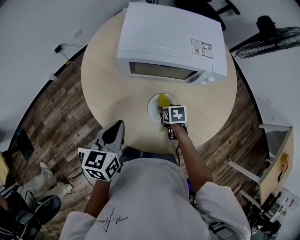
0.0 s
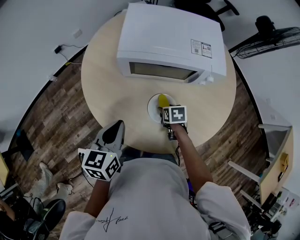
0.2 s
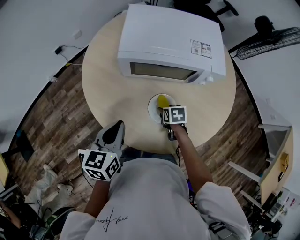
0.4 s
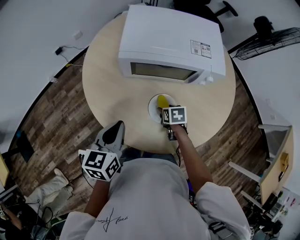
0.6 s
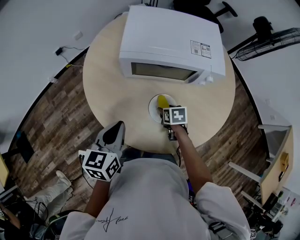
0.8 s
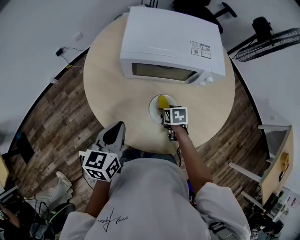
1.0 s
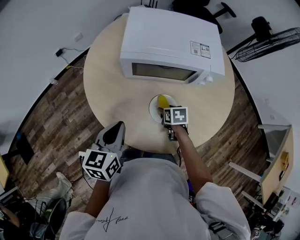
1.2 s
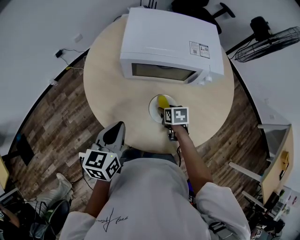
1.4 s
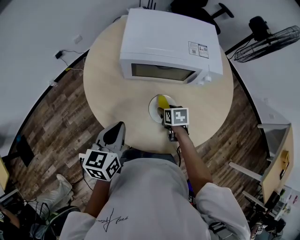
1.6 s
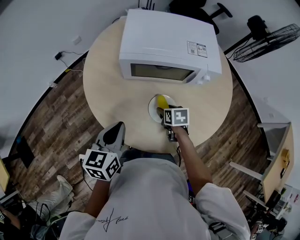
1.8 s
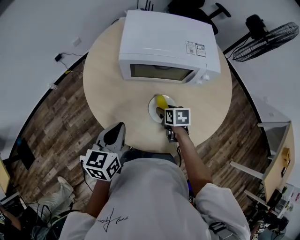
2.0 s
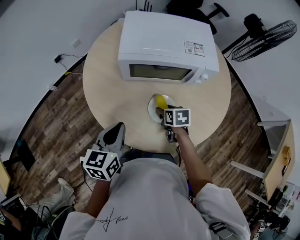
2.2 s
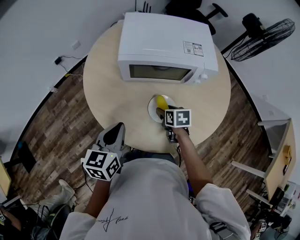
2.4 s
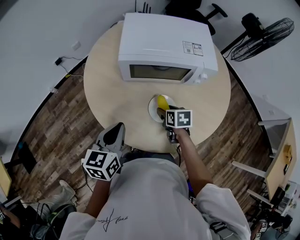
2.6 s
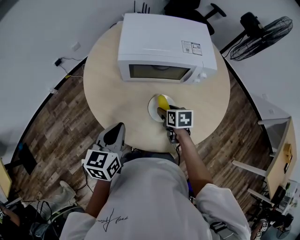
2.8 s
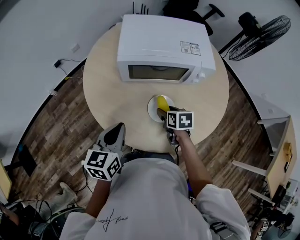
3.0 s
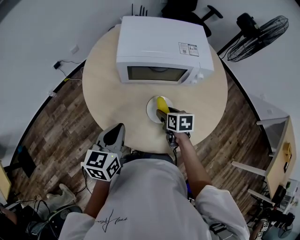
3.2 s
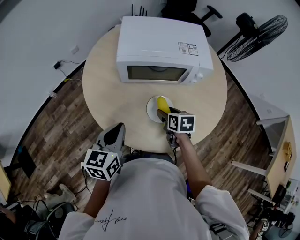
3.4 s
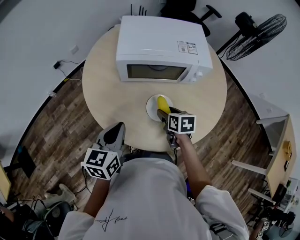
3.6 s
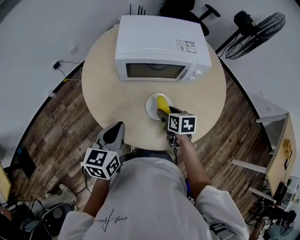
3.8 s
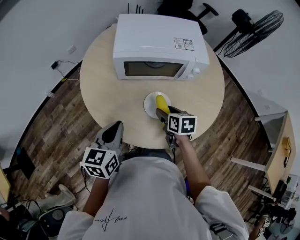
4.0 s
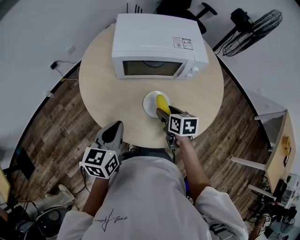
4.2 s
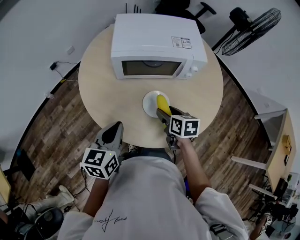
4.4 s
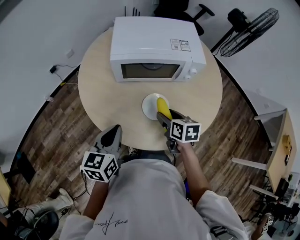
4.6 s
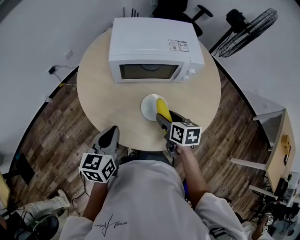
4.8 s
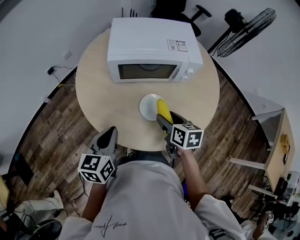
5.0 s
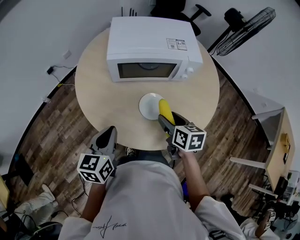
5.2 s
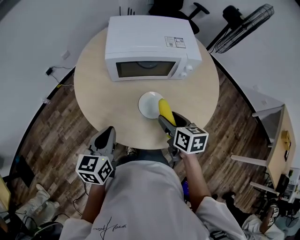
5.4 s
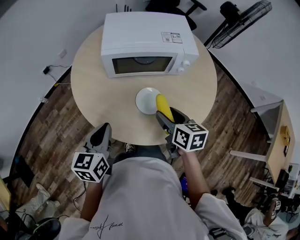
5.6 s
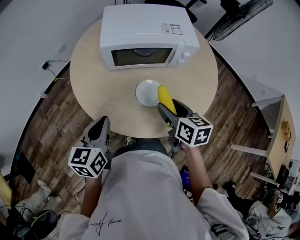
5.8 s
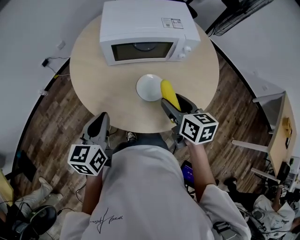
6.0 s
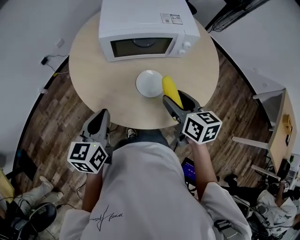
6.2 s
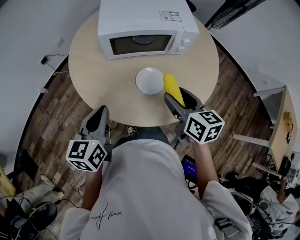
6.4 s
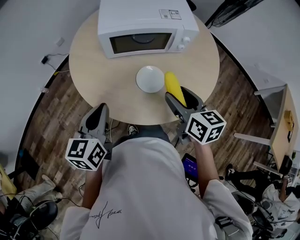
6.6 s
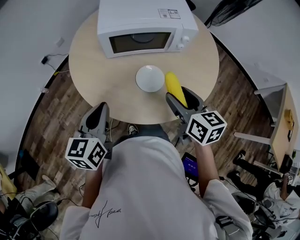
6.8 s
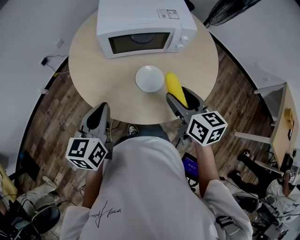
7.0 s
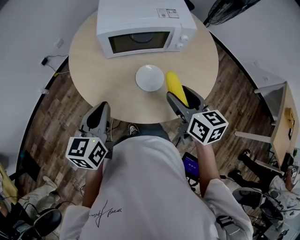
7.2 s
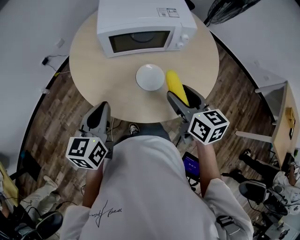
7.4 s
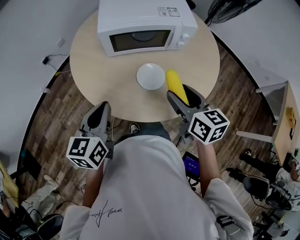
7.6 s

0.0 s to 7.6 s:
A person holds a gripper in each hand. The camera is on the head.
0.0 to 1.6 s: The grippers stay close to where they were, moving slightly.
1.6 to 3.0 s: The right gripper moves approximately 5 cm.
3.0 to 4.6 s: The right gripper travels upward by roughly 5 cm.
4.6 to 6.0 s: The right gripper moves upward, roughly 10 cm.
6.0 to 7.6 s: The right gripper changes place by some 5 cm.

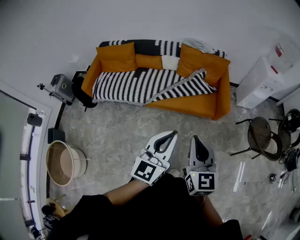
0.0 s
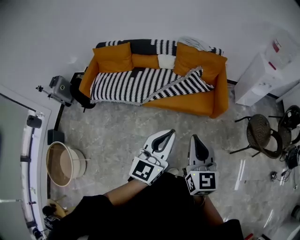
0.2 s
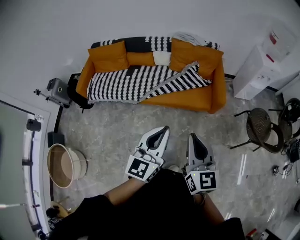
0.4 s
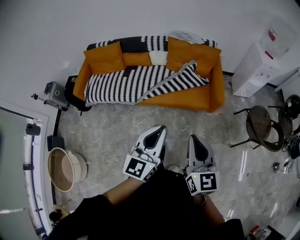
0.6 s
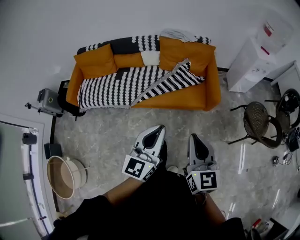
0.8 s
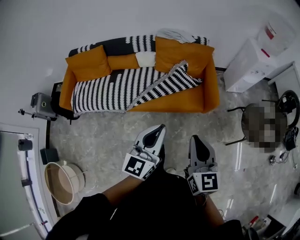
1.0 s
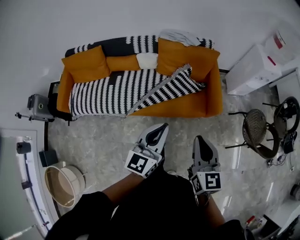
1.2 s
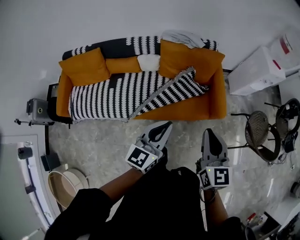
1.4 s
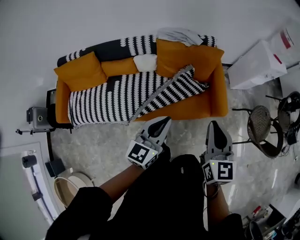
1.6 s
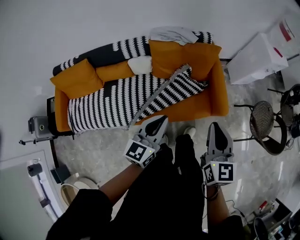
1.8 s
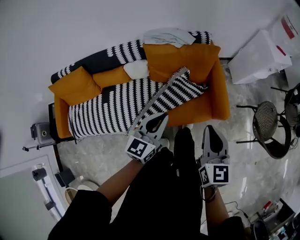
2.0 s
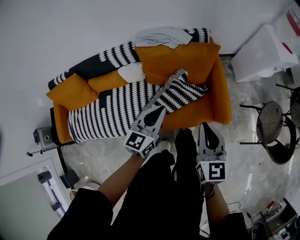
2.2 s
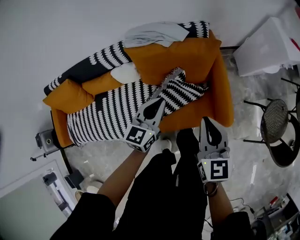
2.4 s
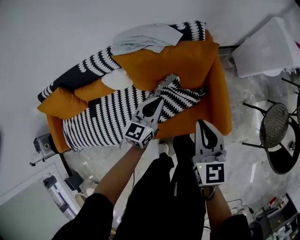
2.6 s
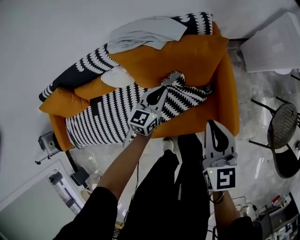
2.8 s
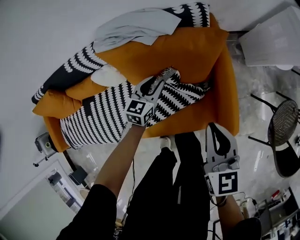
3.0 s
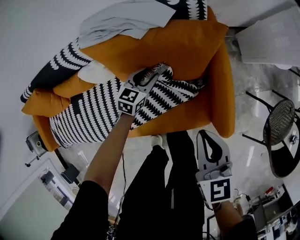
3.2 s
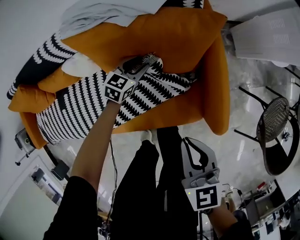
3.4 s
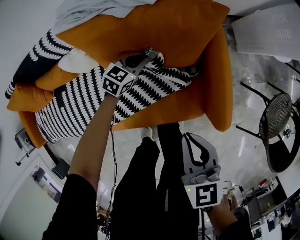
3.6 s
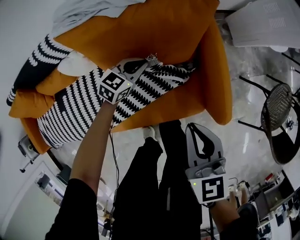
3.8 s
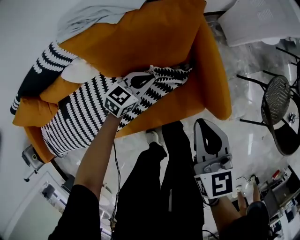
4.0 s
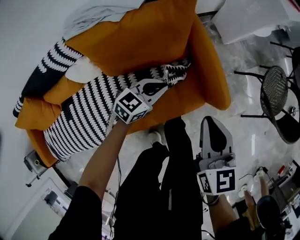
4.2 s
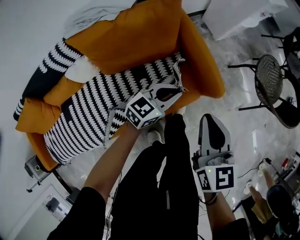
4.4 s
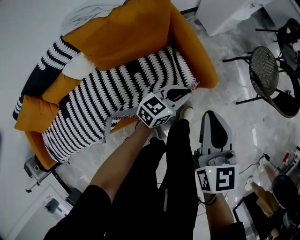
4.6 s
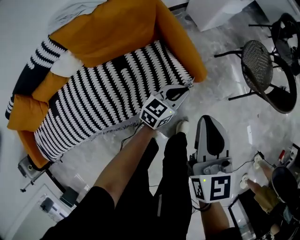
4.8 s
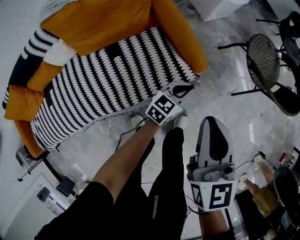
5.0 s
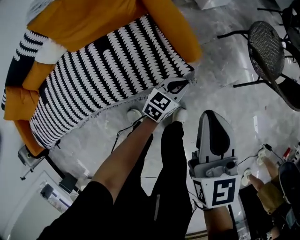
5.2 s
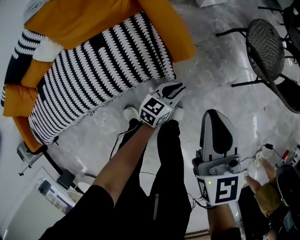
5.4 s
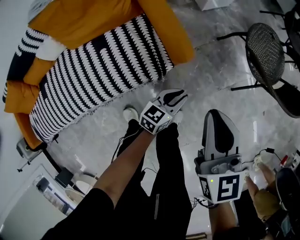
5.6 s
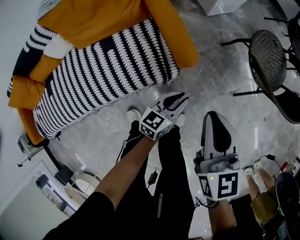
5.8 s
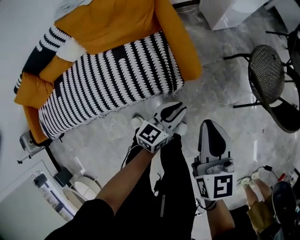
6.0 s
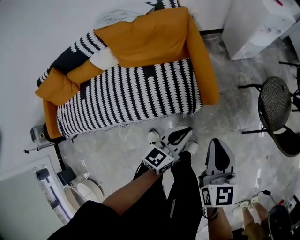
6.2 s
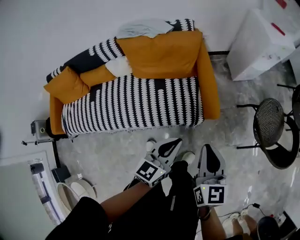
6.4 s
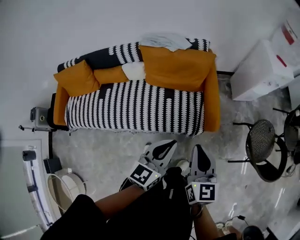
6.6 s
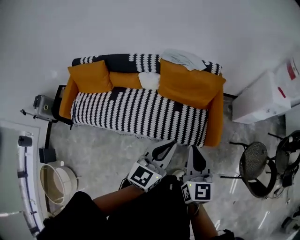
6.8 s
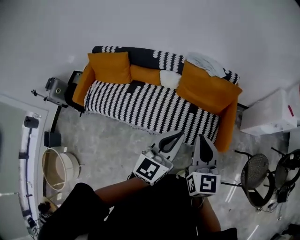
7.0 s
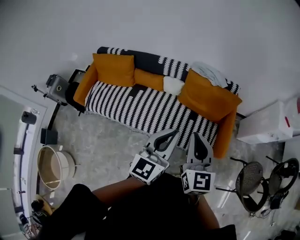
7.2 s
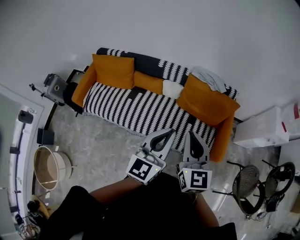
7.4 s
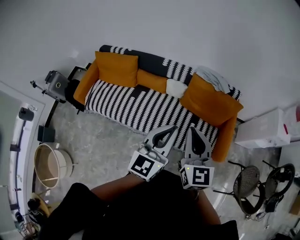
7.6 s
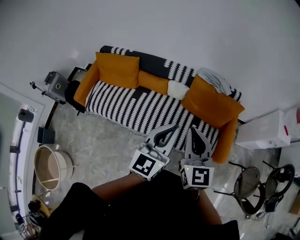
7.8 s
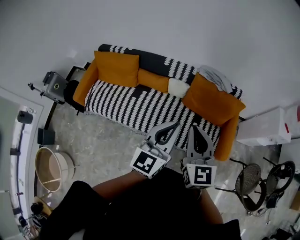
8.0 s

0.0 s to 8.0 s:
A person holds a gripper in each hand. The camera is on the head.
0.0 to 1.6 s: Both grippers move forward, approximately 40 cm.
1.6 to 3.2 s: The right gripper heads downward and forward, covering roughly 40 cm. The left gripper goes approximately 70 cm downward and forward, turns by some 30 degrees, and opens its fingers.
3.2 to 4.8 s: The left gripper moves up and down over roughly 15 cm, changing direction 2 times, rotates roughly 40 degrees, and closes, while the right gripper moves some 25 cm, and changes its angle by approximately 30 degrees.
4.8 to 6.4 s: The left gripper travels upward by some 20 cm, and turns by about 30 degrees, while the right gripper reaches about 10 cm downward, then returns.
6.4 to 8.0 s: The right gripper moves approximately 50 cm, and swivels approximately 40 degrees. Meanwhile the left gripper moves some 50 cm, and swivels roughly 40 degrees.

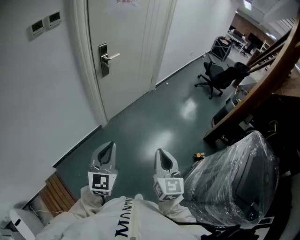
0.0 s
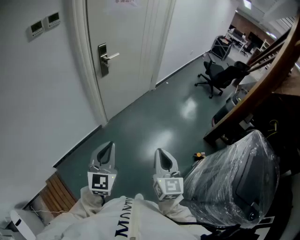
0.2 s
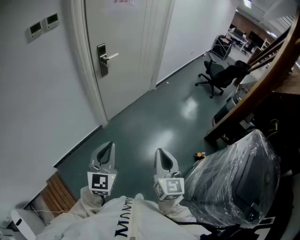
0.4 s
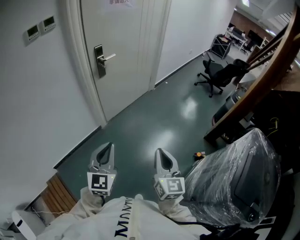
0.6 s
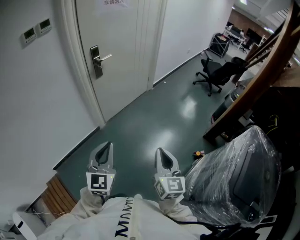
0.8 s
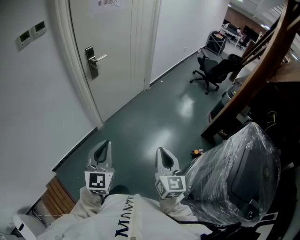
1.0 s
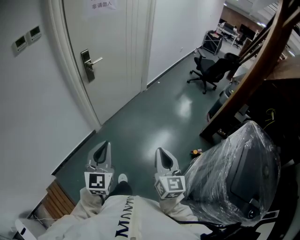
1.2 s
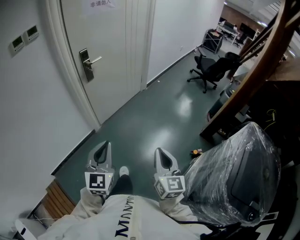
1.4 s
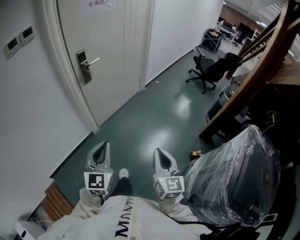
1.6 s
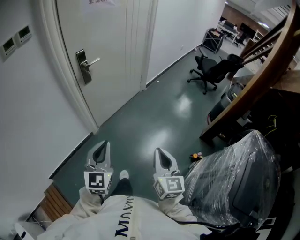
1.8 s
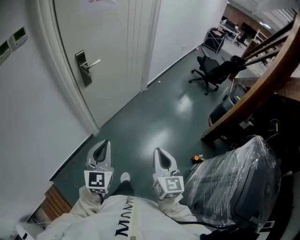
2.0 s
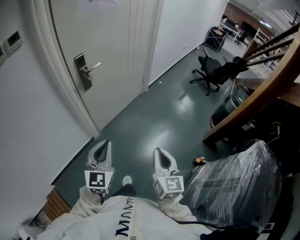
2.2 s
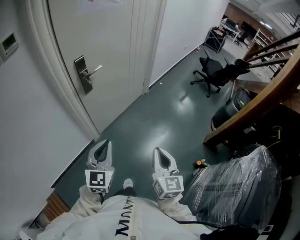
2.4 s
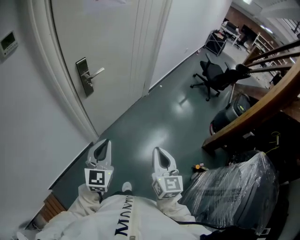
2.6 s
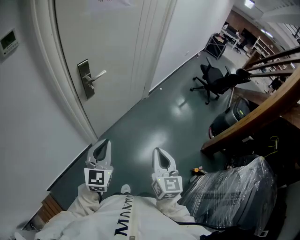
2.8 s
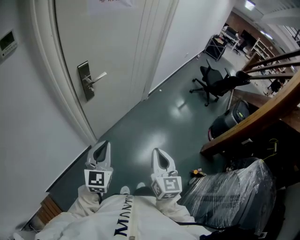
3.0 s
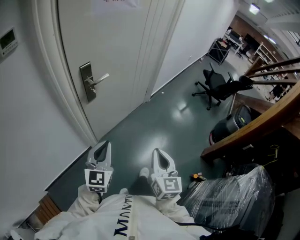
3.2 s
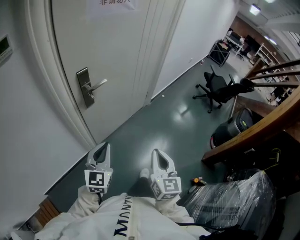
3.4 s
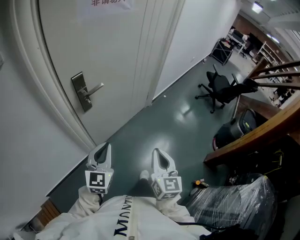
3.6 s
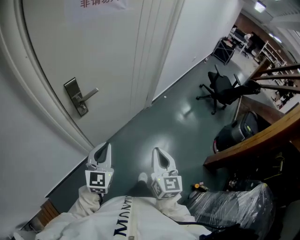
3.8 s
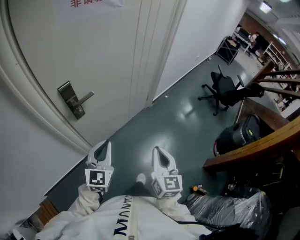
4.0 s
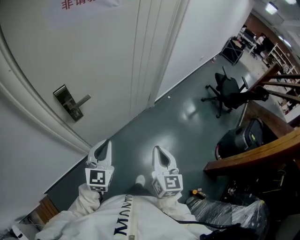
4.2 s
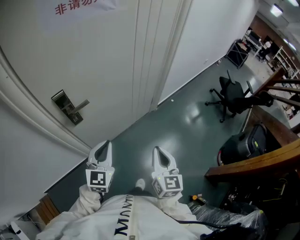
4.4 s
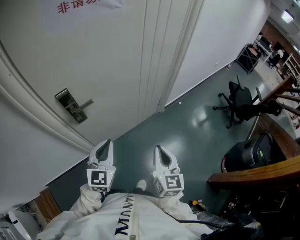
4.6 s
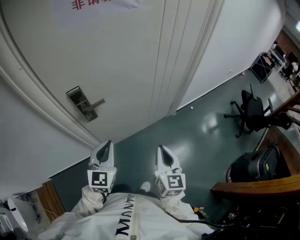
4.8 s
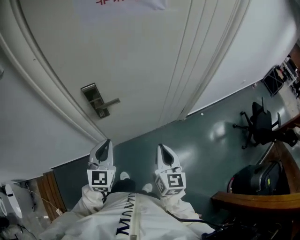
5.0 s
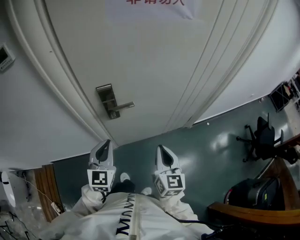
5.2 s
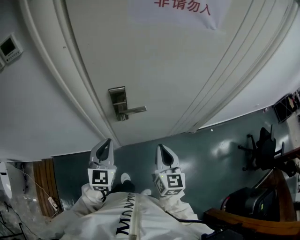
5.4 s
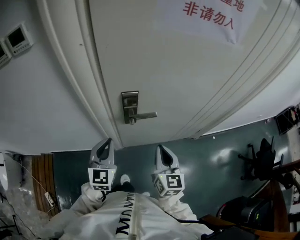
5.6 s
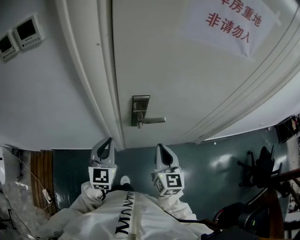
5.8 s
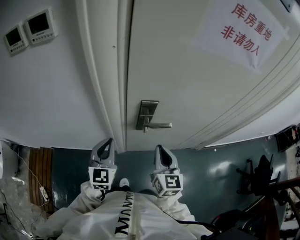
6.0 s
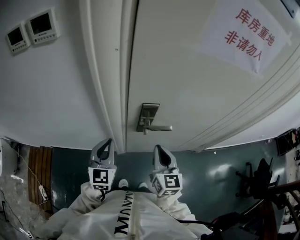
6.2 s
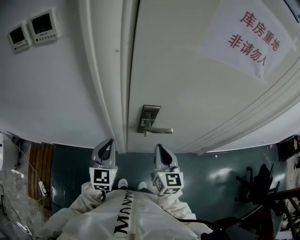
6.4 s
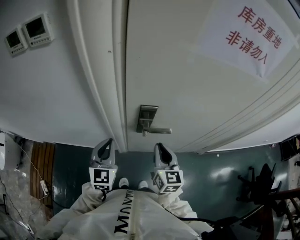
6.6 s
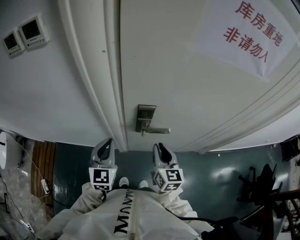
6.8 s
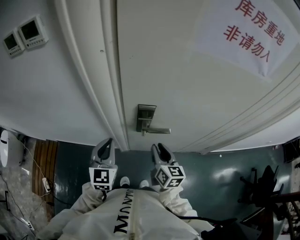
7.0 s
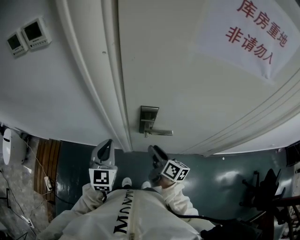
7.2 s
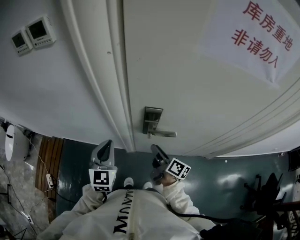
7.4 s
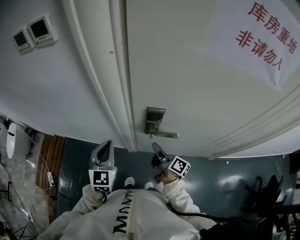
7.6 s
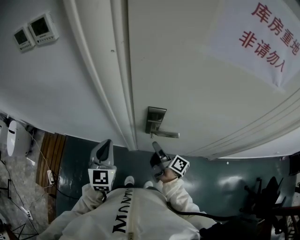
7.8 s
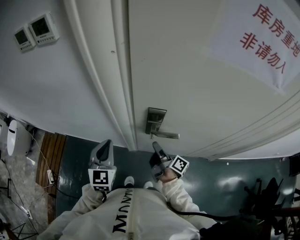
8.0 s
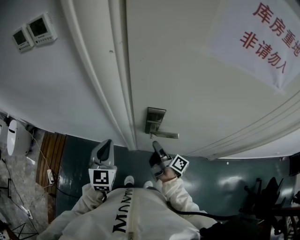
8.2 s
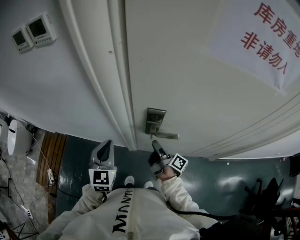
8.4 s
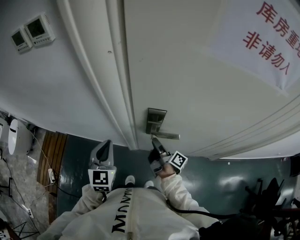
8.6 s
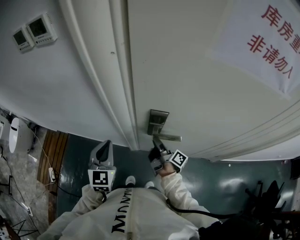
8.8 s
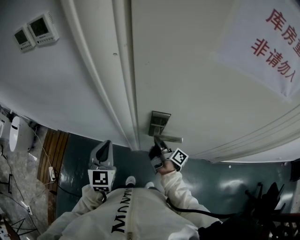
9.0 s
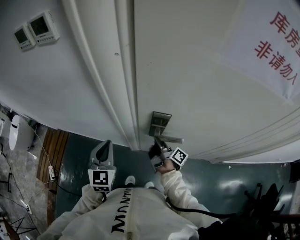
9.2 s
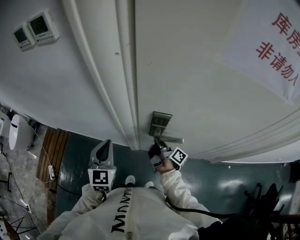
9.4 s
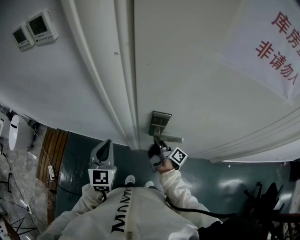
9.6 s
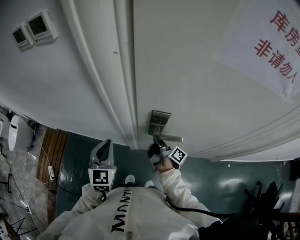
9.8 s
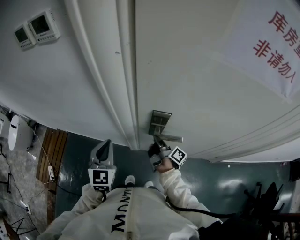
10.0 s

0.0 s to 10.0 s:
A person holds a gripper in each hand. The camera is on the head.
0.0 to 1.4 s: The grippers both shift to the right by about 10 cm.
1.4 to 2.8 s: The left gripper heads forward, covering approximately 25 cm. The right gripper heads forward and to the left, covering approximately 25 cm.
2.8 to 4.2 s: Both grippers travel together forward, approximately 25 cm.
4.2 to 5.8 s: The right gripper ends up roughly 30 cm from where it was, and rotates about 40 degrees. Meanwhile the left gripper ends up approximately 25 cm from where it was, and turns by about 40 degrees.
5.8 to 7.2 s: The right gripper moves downward and forward, about 10 cm, twists some 40 degrees clockwise, seen from behind, and opens its fingers.
7.2 to 8.6 s: The right gripper heads forward and downward, covering approximately 10 cm, and swivels roughly 40 degrees.
8.6 to 10.0 s: The right gripper closes its fingers.
